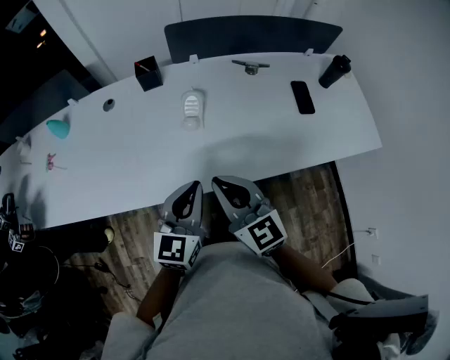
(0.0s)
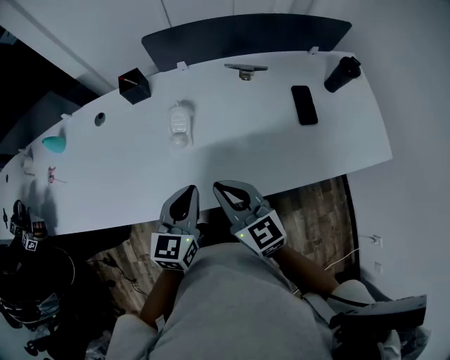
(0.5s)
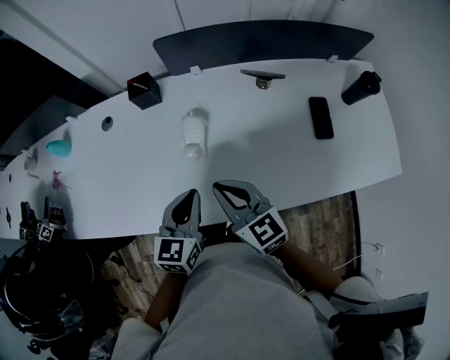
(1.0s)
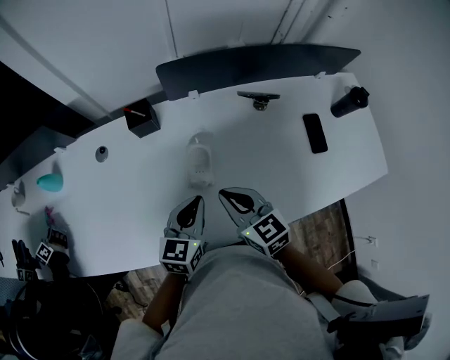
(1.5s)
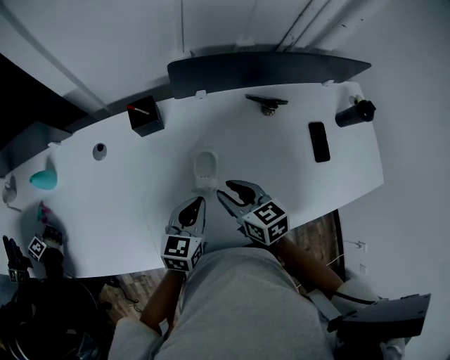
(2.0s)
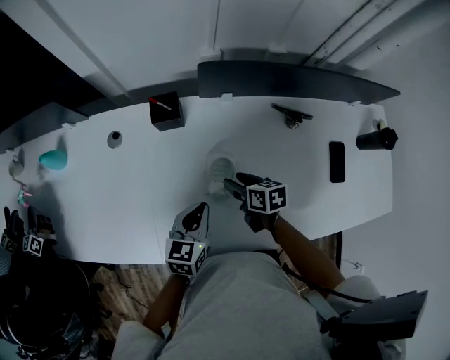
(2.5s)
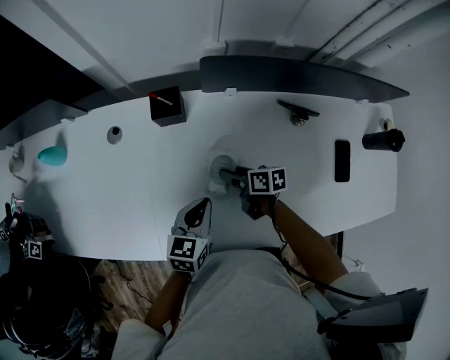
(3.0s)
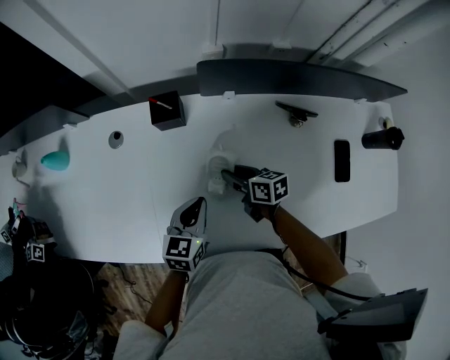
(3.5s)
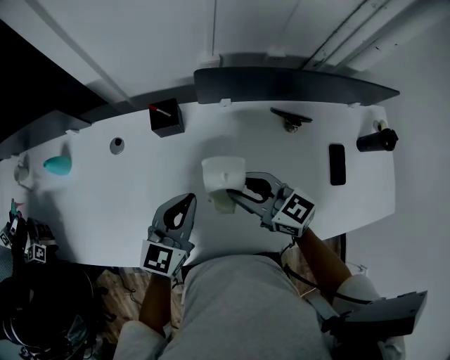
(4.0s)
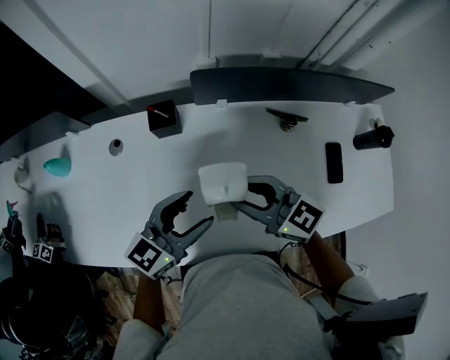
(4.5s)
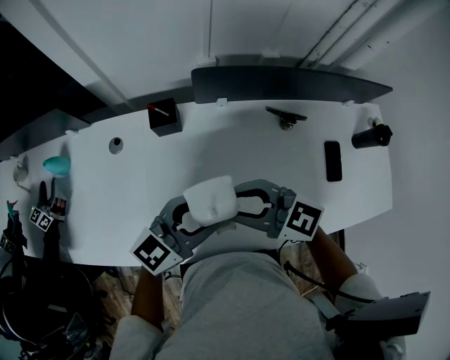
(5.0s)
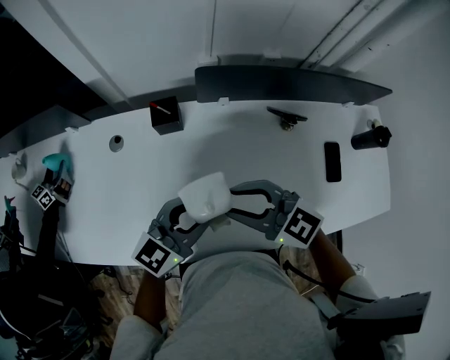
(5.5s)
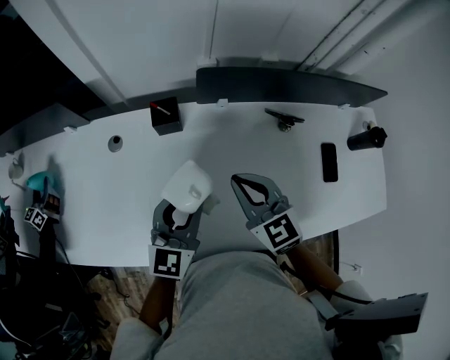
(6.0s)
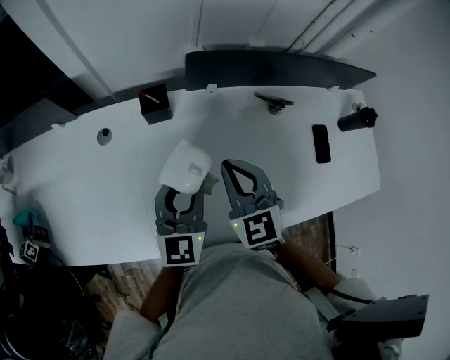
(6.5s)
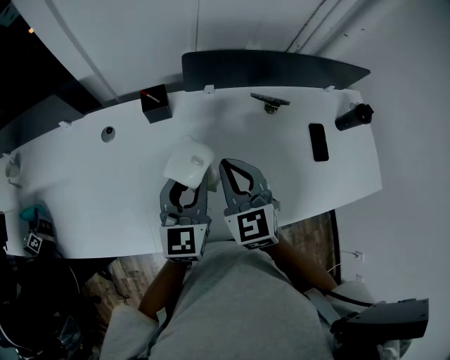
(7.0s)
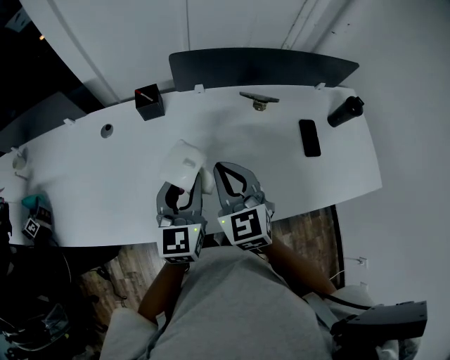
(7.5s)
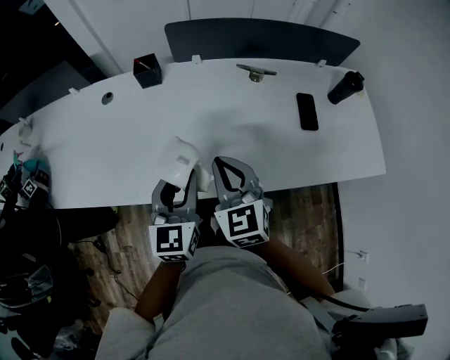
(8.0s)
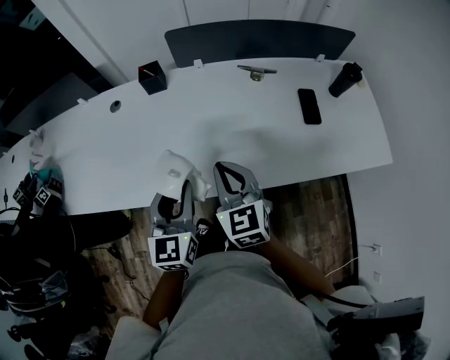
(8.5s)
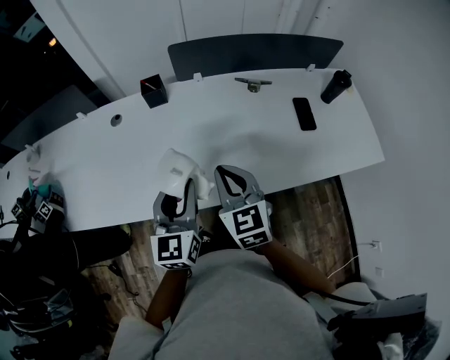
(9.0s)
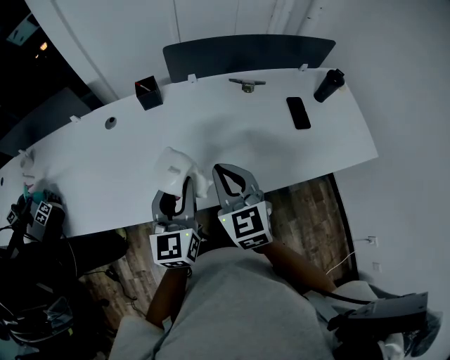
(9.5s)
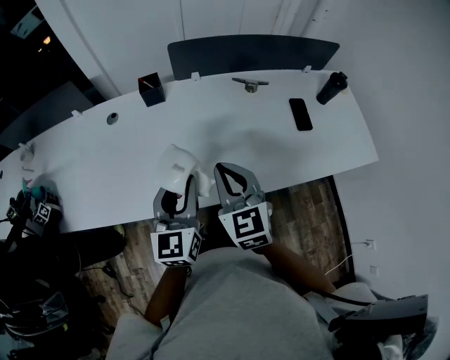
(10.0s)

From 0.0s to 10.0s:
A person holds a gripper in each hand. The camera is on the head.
From 0.0s to 2.0s: Both grippers move forward and downward, some 25 cm. The left gripper turns by roughly 20 degrees. The right gripper rotates some 40 degrees, and opens.
From 2.0s to 4.0s: The right gripper is displaced forward by about 5 cm, reaches roughly 15 cm downward, then returns, rotates about 30 degrees, and opens and closes again. Meanwhile the left gripper shifts some 10 cm upward and forward.
From 4.0s to 6.0s: The left gripper opens its fingers, while the right gripper swivels some 30 degrees, and closes its fingers.
From 6.0s to 8.0s: The left gripper heads backward and to the right, covering approximately 20 cm; the right gripper travels backward by about 20 cm.
From 8.0s to 10.0s: The left gripper moves to the left, approximately 5 cm. Meanwhile the right gripper changes place by some 5 cm.

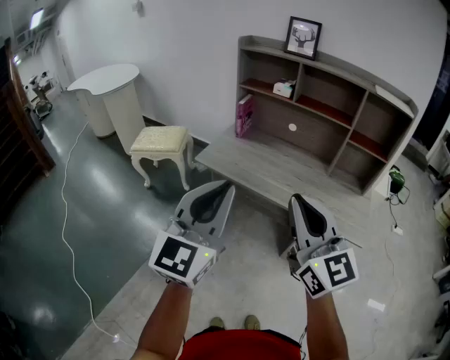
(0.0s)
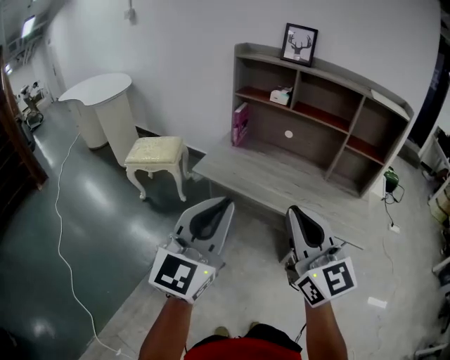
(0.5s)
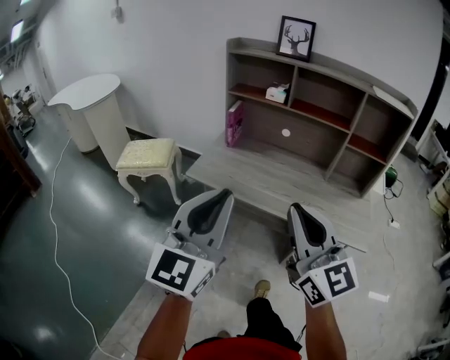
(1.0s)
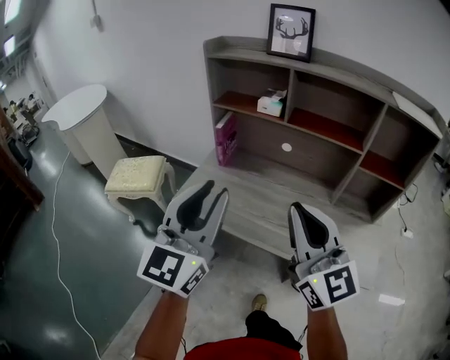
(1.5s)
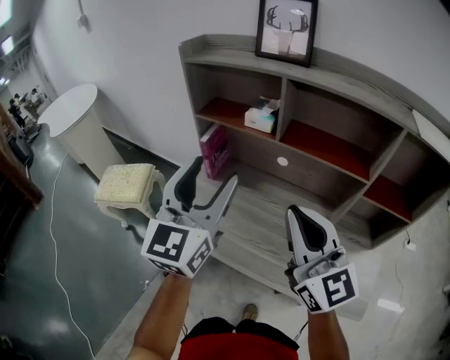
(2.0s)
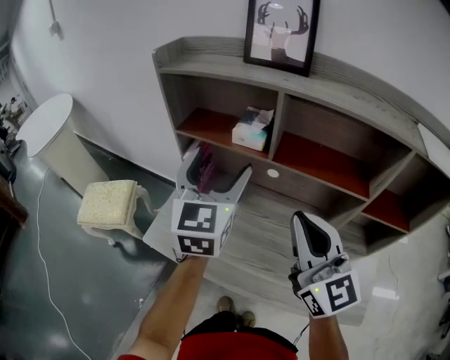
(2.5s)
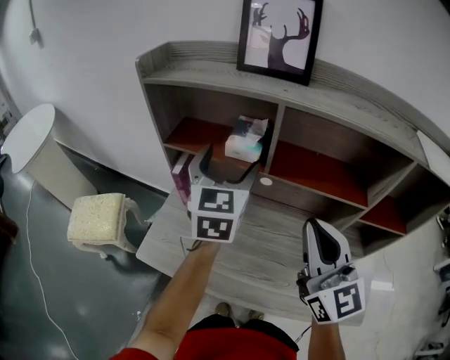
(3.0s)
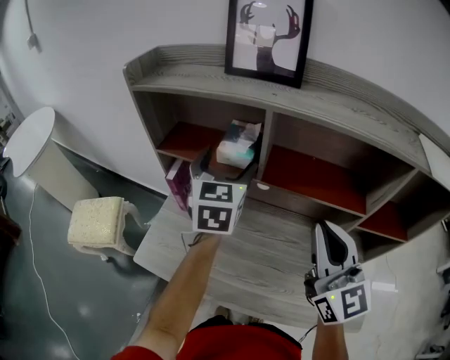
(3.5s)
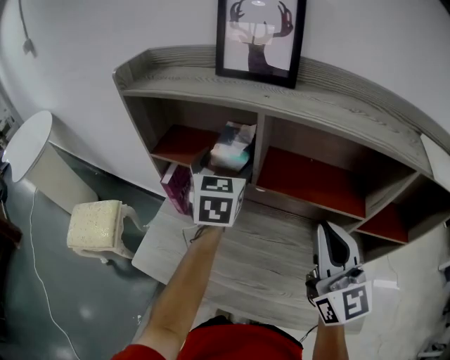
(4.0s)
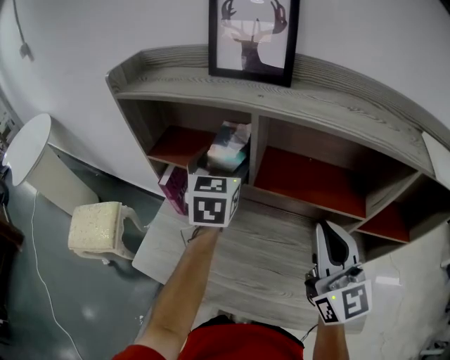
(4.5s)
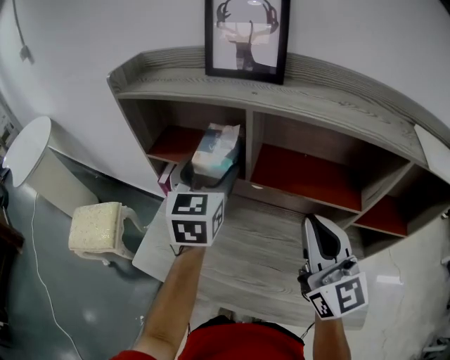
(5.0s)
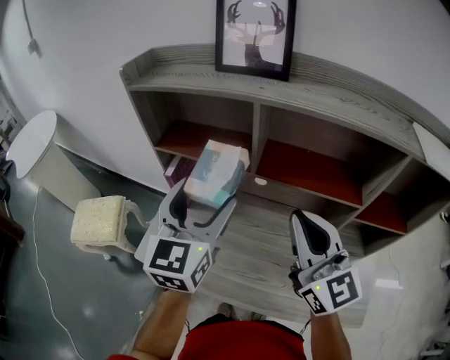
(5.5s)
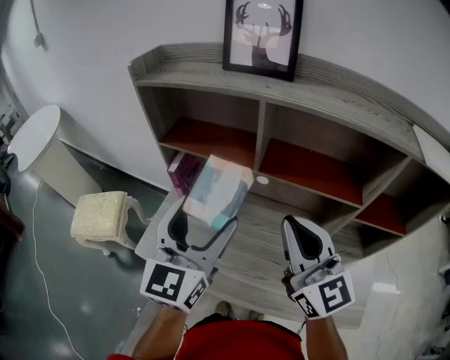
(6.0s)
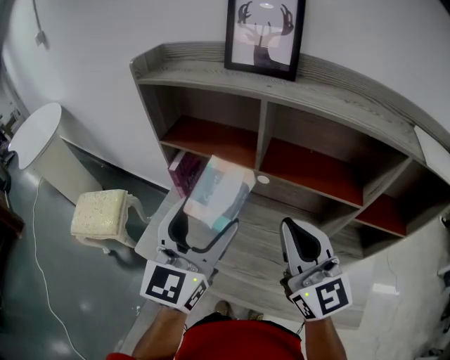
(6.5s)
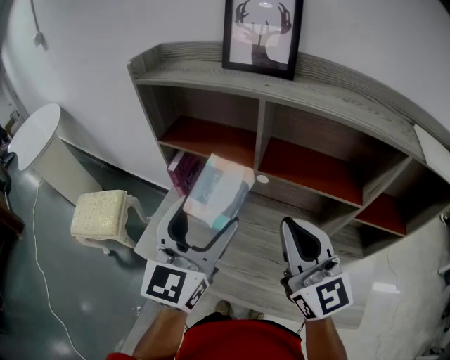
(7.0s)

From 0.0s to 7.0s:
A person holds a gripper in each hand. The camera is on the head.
From 0.0s to 2.0s: The grippers both shift forward by about 40 cm. The left gripper opens its fingers.
From 2.0s to 3.5s: The right gripper is displaced forward and to the right by some 15 cm; the left gripper is displaced forward by roughly 25 cm, and turns by some 20 degrees.
From 3.5s to 5.0s: The grippers stay close to where they were, moving slightly.
From 5.0s to 7.0s: The left gripper travels backward by approximately 10 cm.

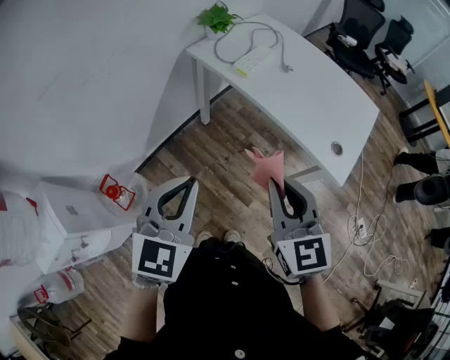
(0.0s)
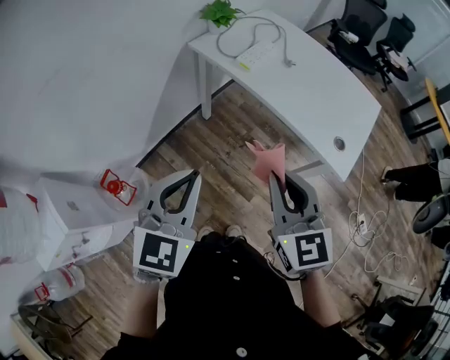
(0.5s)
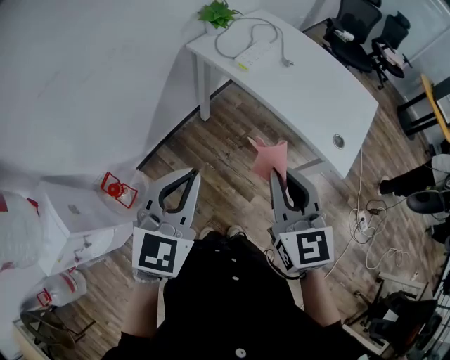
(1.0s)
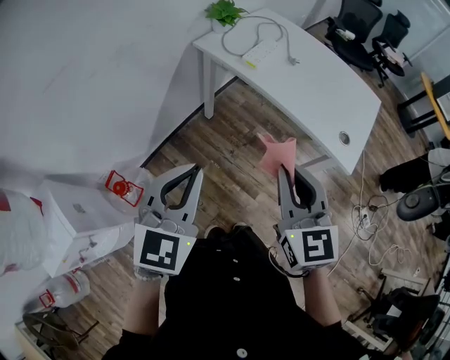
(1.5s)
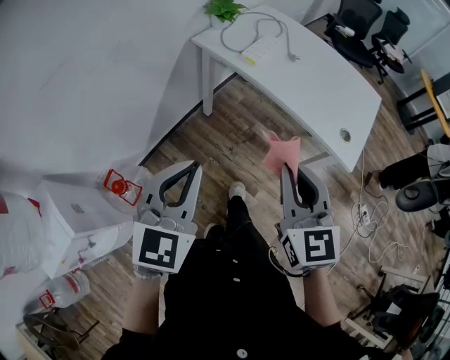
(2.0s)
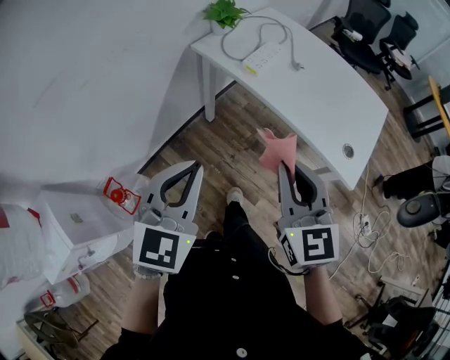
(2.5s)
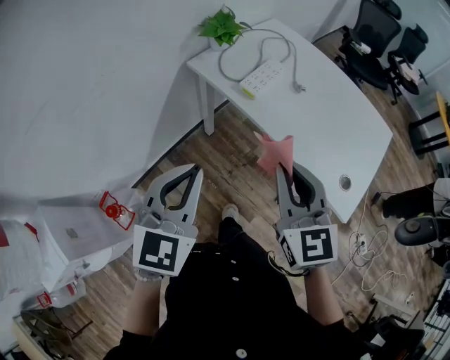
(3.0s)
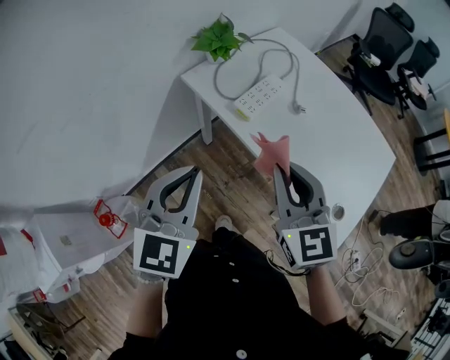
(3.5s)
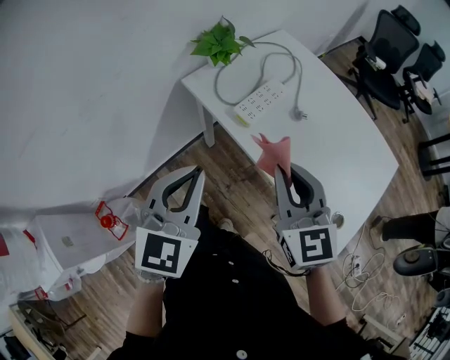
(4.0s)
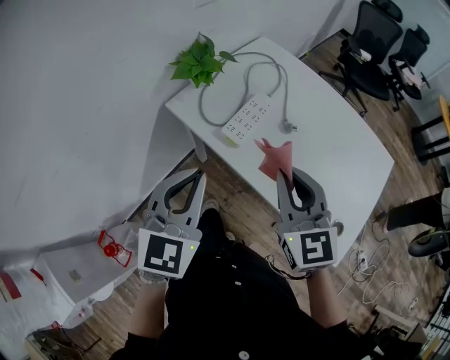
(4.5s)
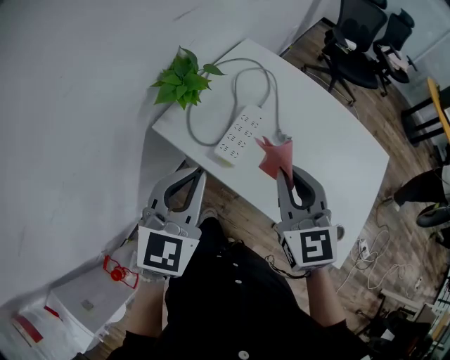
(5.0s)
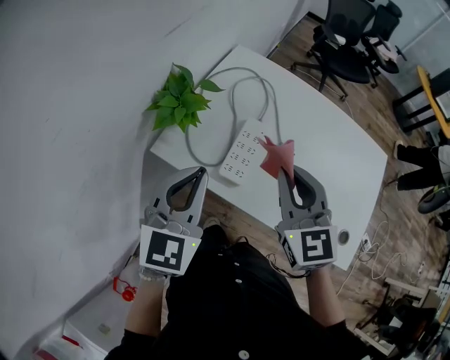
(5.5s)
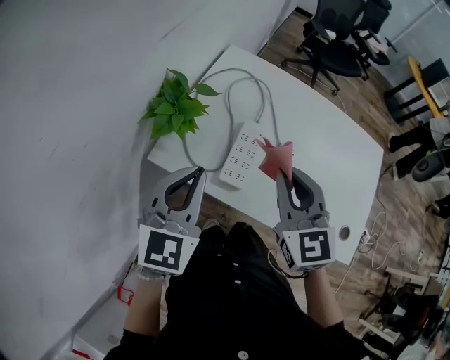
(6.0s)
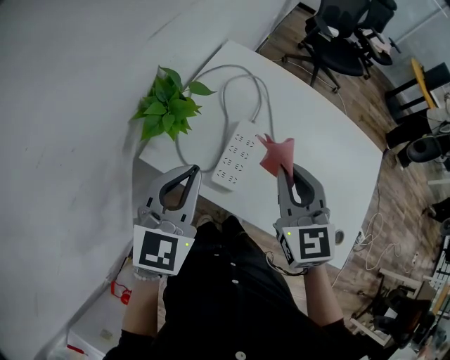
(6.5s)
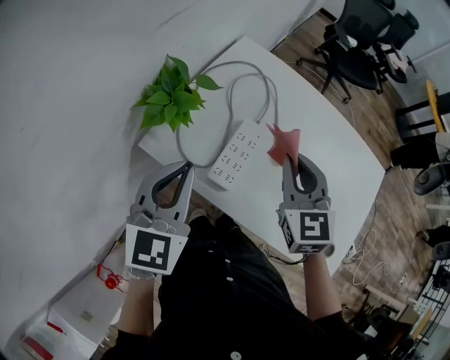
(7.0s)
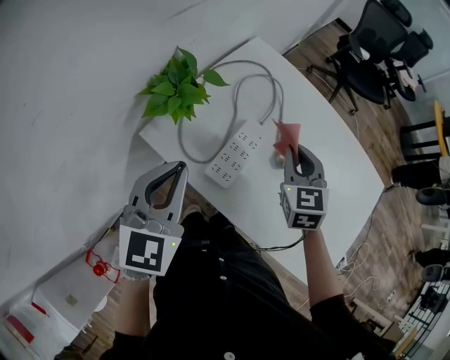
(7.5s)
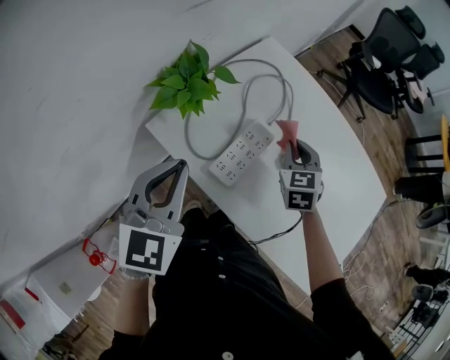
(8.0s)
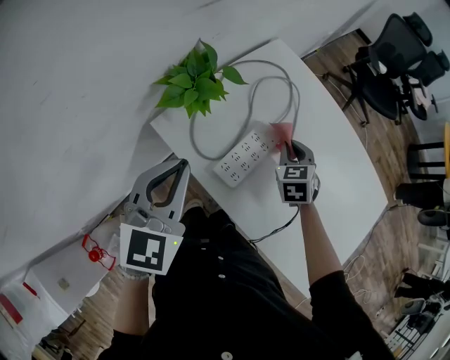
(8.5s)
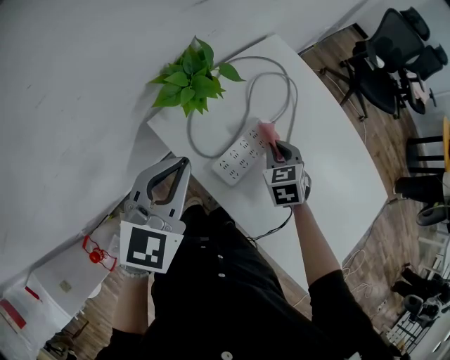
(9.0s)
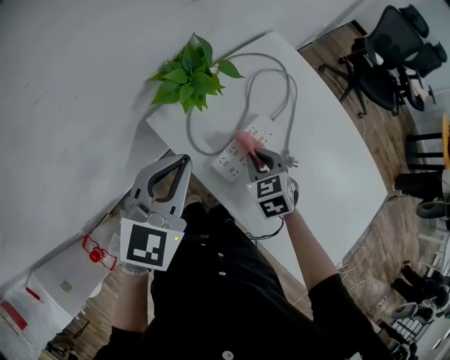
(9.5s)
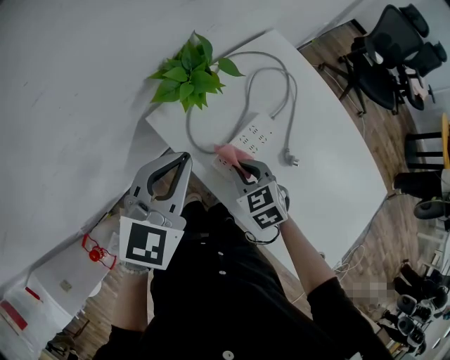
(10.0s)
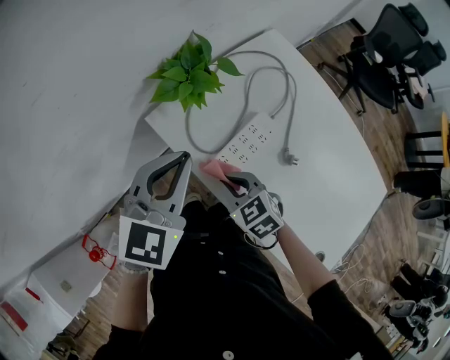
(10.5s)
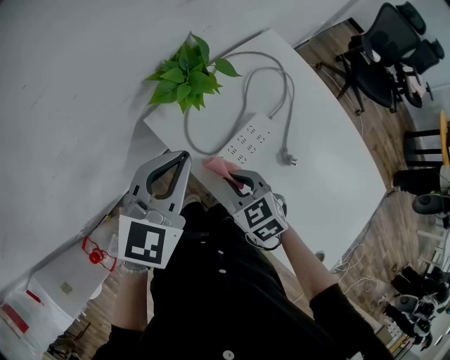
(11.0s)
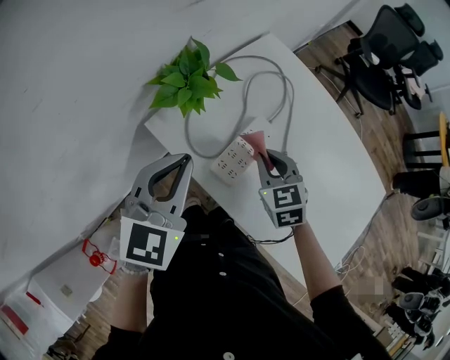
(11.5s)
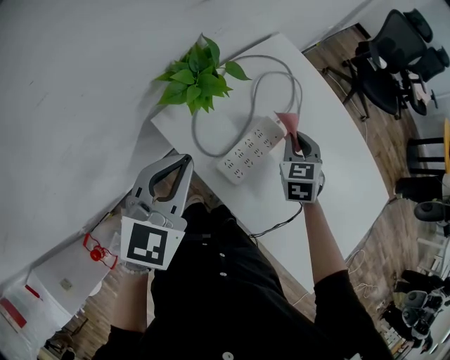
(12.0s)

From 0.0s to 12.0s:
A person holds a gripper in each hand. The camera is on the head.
From 0.0s to 2.0s: The grippers move only a little.
From 2.0s to 4.0s: The grippers both shift forward by approximately 30 cm.
From 4.0s to 6.0s: Both grippers move forward, about 25 cm. The right gripper swivels about 20 degrees; the left gripper swivels some 20 degrees.
From 6.0s to 8.0s: The right gripper heads forward, downward and to the right, covering some 25 cm, and turns by about 20 degrees.
From 8.0s to 10.0s: The right gripper is displaced to the left and backward by roughly 20 cm, and turns by approximately 30 degrees.
From 10.0s to 12.0s: The right gripper shifts by approximately 20 cm, and rotates approximately 30 degrees.
